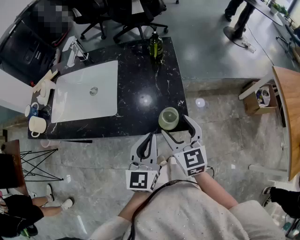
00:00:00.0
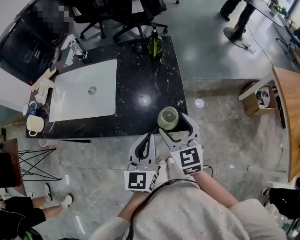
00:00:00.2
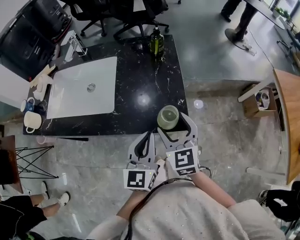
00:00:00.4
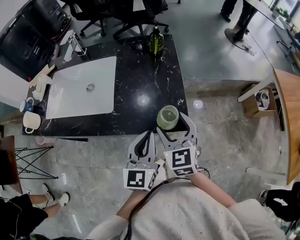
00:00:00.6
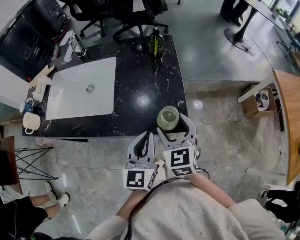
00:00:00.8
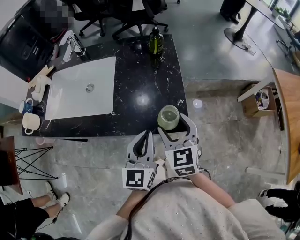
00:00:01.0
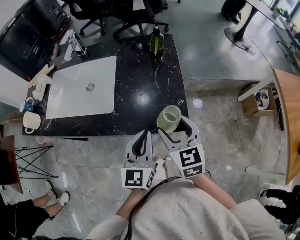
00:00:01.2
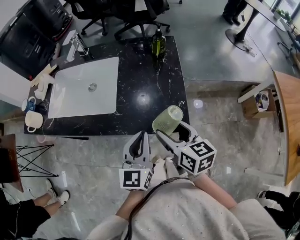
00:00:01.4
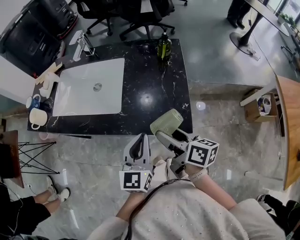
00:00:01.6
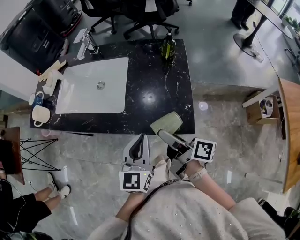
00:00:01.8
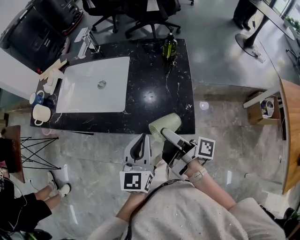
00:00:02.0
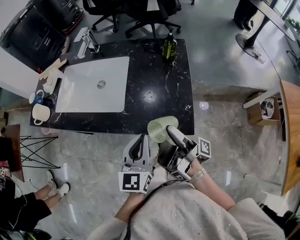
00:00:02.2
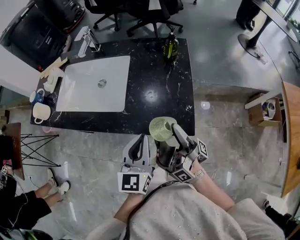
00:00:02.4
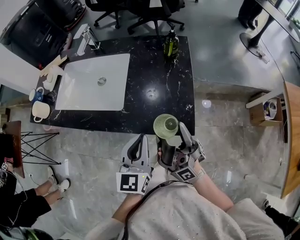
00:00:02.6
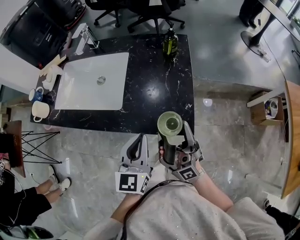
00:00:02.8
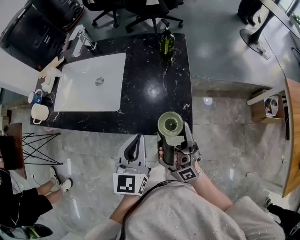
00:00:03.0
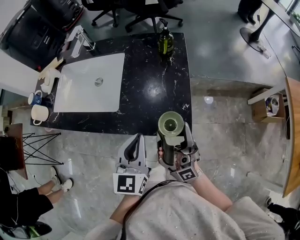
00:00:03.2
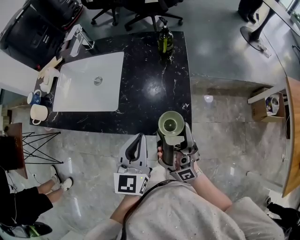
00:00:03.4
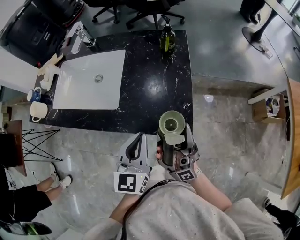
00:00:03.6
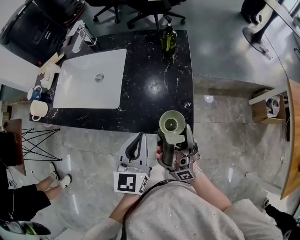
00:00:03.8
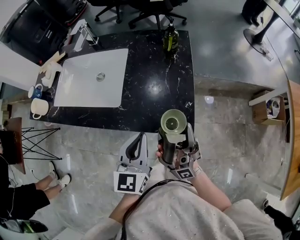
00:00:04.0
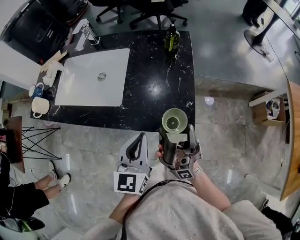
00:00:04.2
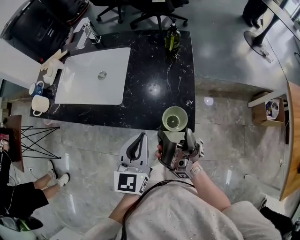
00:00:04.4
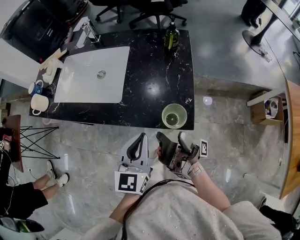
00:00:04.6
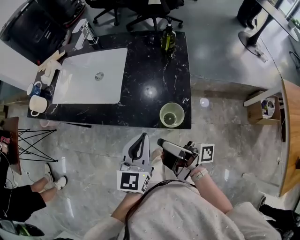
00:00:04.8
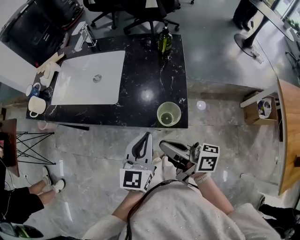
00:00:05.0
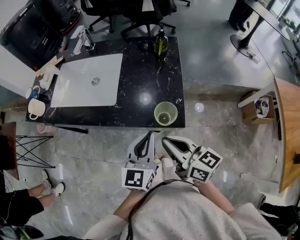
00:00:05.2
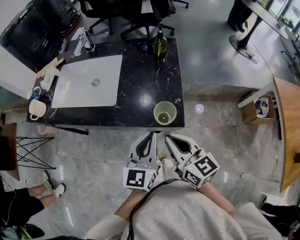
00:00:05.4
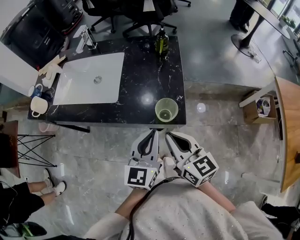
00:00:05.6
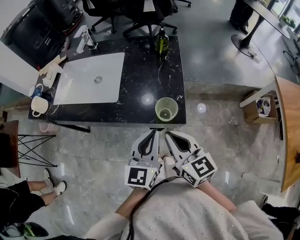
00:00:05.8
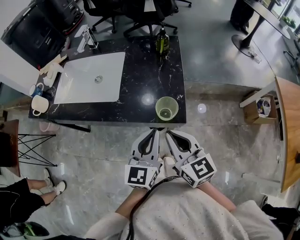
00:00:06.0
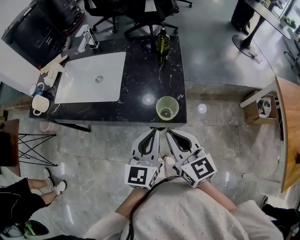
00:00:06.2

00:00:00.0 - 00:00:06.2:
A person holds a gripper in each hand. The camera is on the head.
00:00:04.6 - 00:00:06.2: The left gripper shifts by about 5 cm.

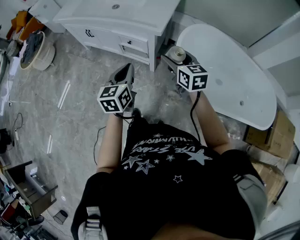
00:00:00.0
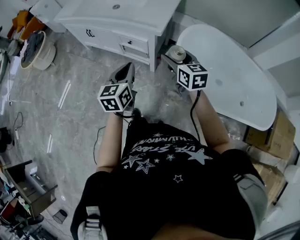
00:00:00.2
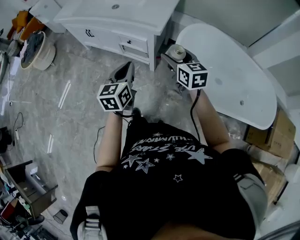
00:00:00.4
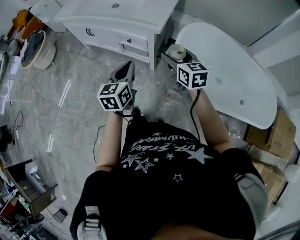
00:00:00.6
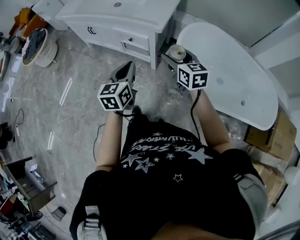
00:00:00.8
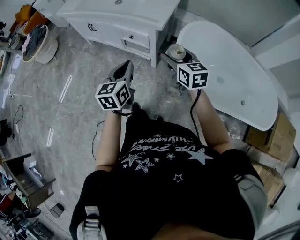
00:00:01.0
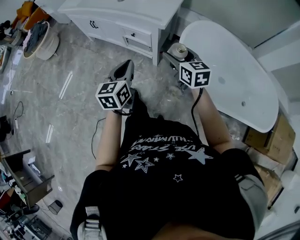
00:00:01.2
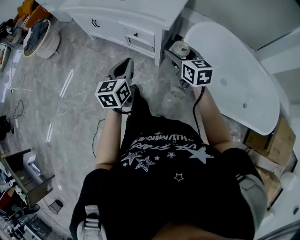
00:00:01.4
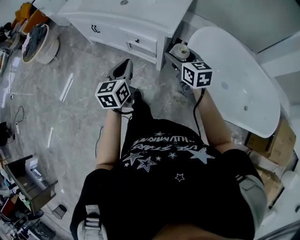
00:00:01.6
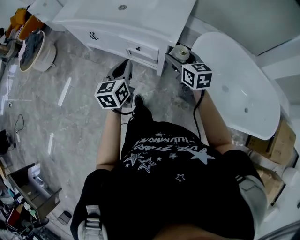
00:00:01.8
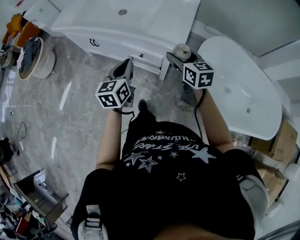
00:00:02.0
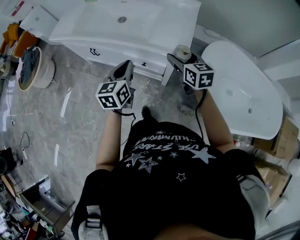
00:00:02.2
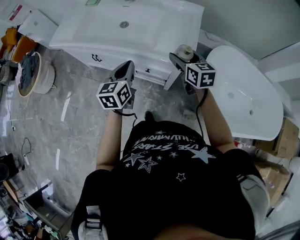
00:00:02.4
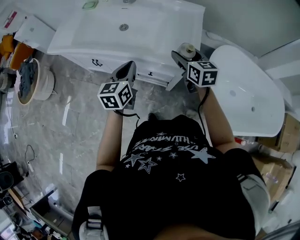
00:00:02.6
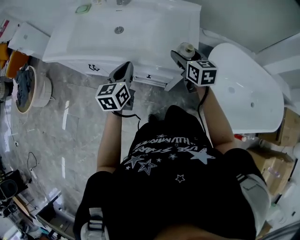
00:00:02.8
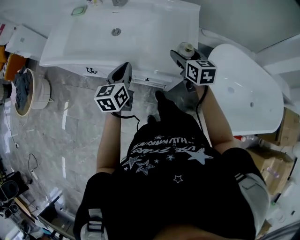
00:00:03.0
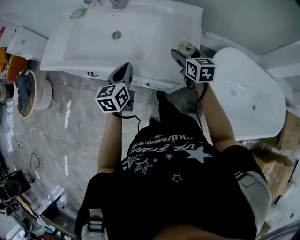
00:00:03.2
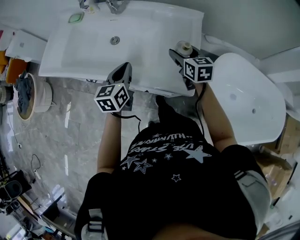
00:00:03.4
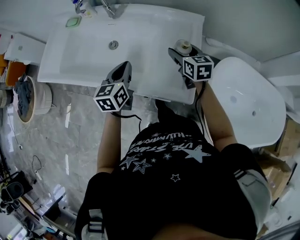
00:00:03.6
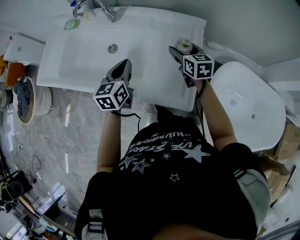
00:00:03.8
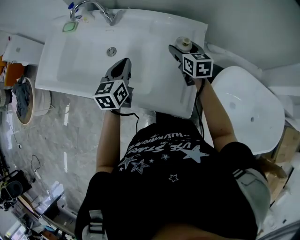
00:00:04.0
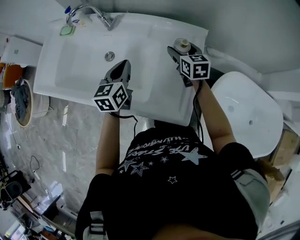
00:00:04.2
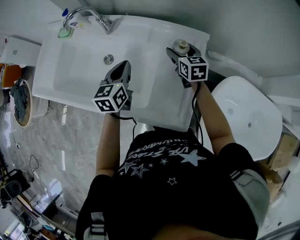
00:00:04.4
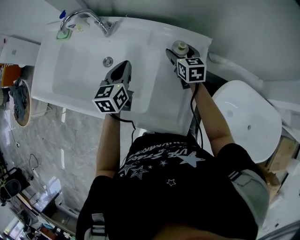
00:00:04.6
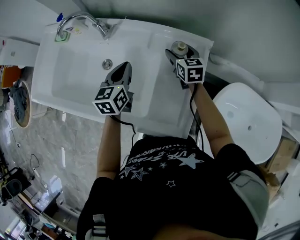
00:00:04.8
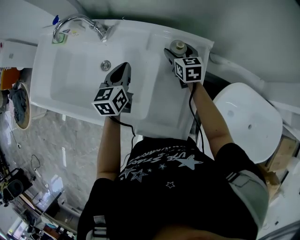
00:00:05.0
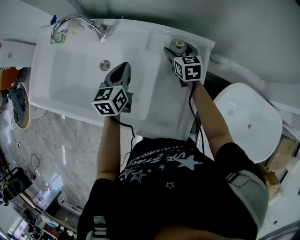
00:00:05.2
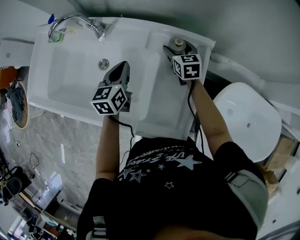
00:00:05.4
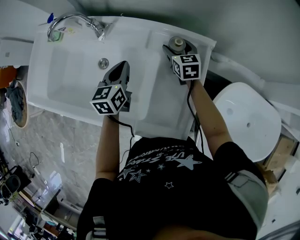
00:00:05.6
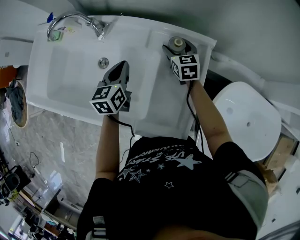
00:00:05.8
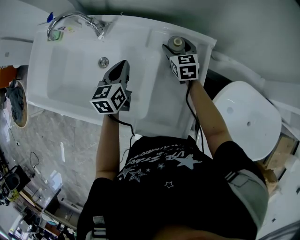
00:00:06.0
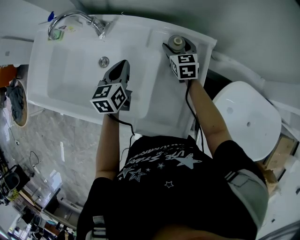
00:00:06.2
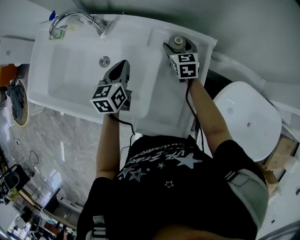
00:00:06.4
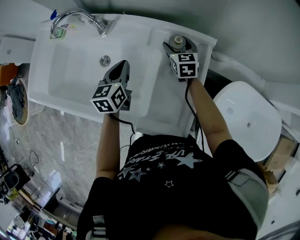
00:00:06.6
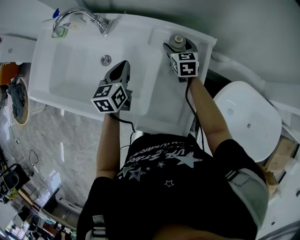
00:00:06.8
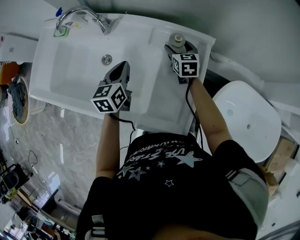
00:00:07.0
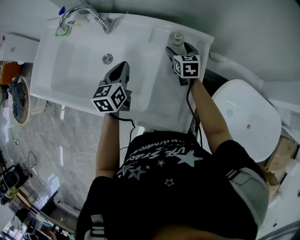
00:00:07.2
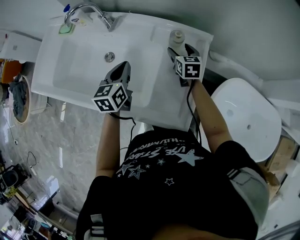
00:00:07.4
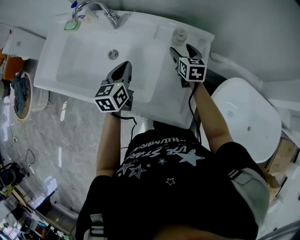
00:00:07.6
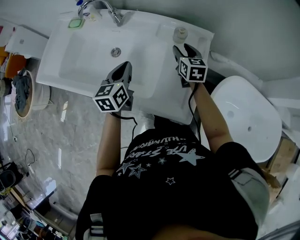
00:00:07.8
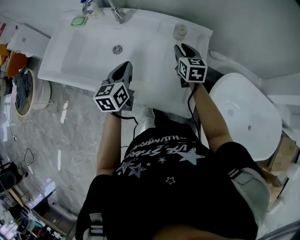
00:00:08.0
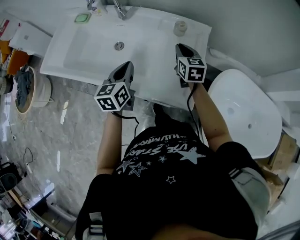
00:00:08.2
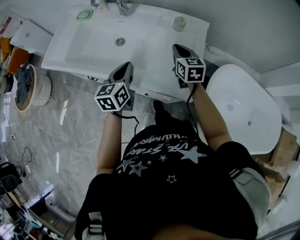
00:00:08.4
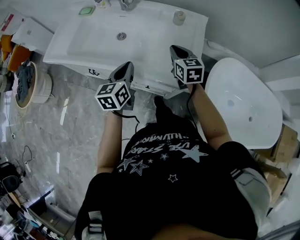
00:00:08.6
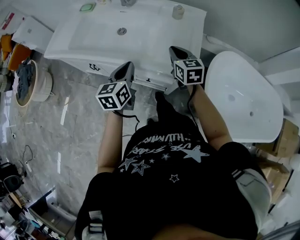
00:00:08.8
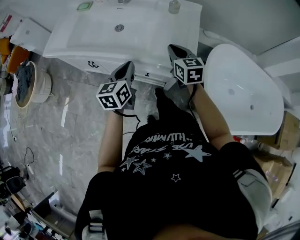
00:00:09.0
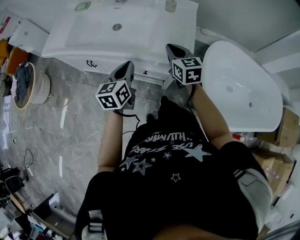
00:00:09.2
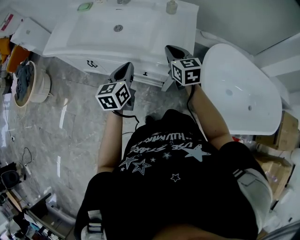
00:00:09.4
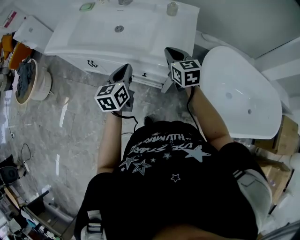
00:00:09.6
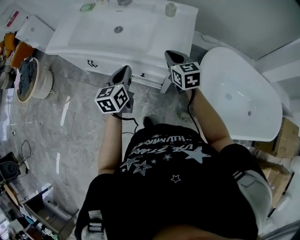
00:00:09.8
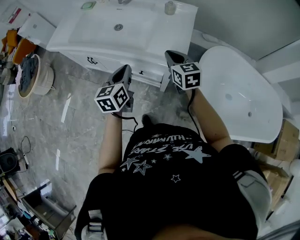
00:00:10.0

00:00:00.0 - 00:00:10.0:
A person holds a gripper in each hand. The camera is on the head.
00:00:00.0 - 00:00:01.4: The grippers make only small movements.
00:00:01.4 - 00:00:02.8: Both grippers move forward, roughly 35 cm.
00:00:02.8 - 00:00:04.2: Both grippers travel together forward, roughly 30 cm.
00:00:04.2 - 00:00:05.8: Both grippers move forward and downward, approximately 10 cm.
00:00:05.8 - 00:00:07.2: The left gripper ends up approximately 5 cm from where it was.
00:00:07.2 - 00:00:08.6: The left gripper travels backward by some 25 cm. The right gripper shifts approximately 30 cm backward and upward, and closes.
00:00:08.6 - 00:00:10.0: The two grippers go approximately 15 cm backward.

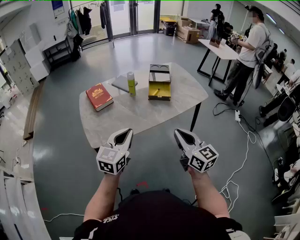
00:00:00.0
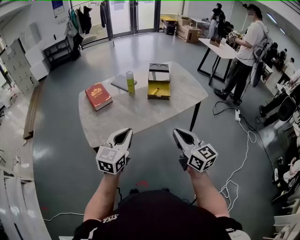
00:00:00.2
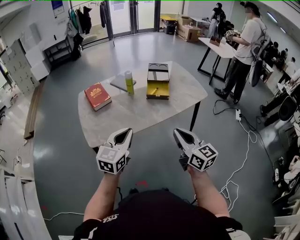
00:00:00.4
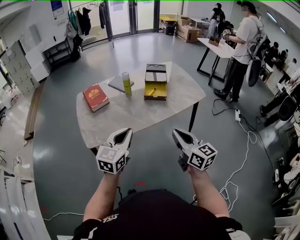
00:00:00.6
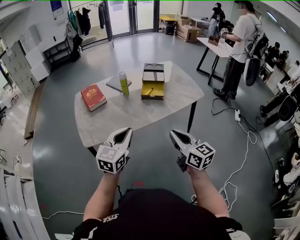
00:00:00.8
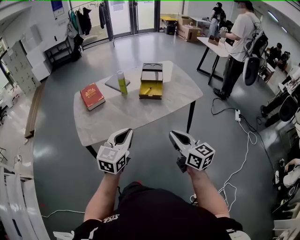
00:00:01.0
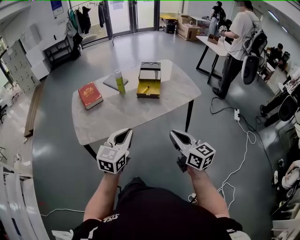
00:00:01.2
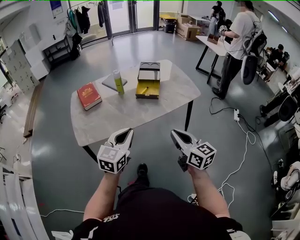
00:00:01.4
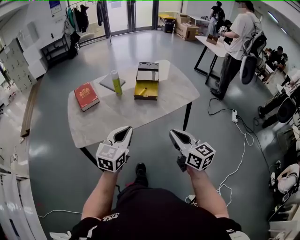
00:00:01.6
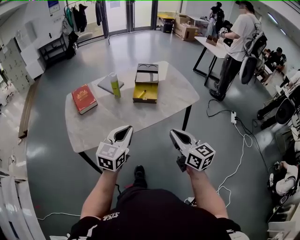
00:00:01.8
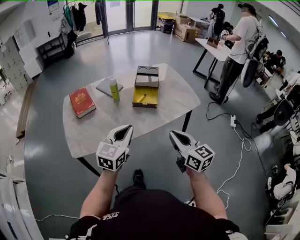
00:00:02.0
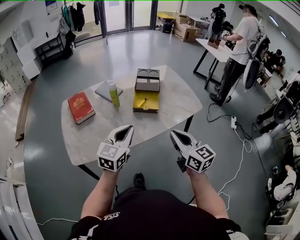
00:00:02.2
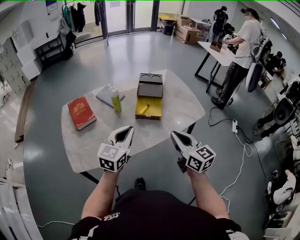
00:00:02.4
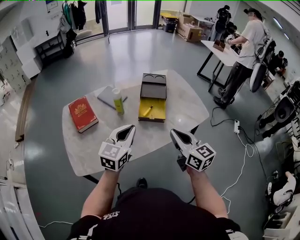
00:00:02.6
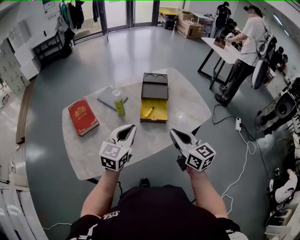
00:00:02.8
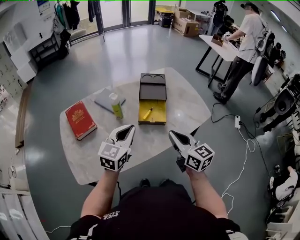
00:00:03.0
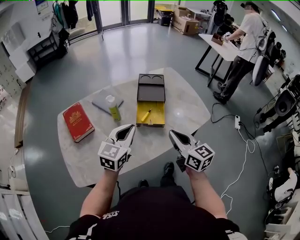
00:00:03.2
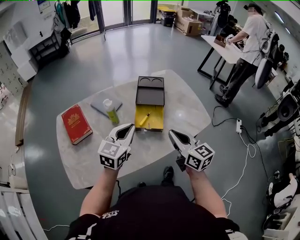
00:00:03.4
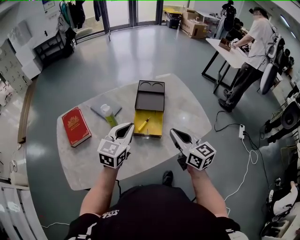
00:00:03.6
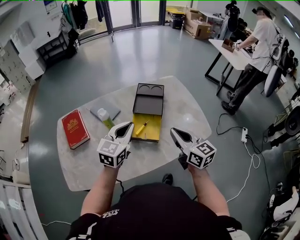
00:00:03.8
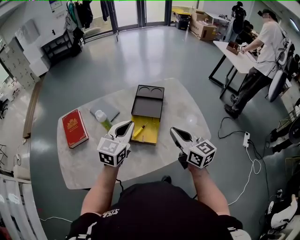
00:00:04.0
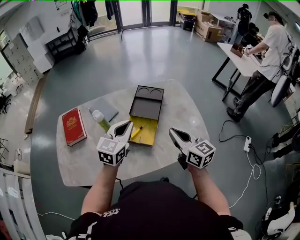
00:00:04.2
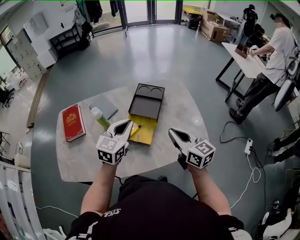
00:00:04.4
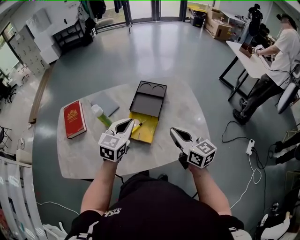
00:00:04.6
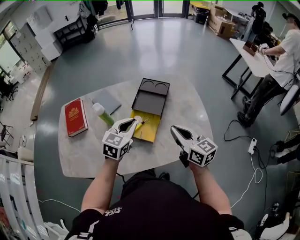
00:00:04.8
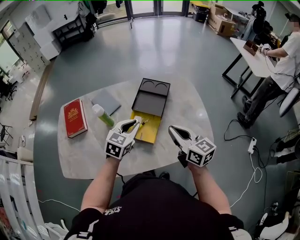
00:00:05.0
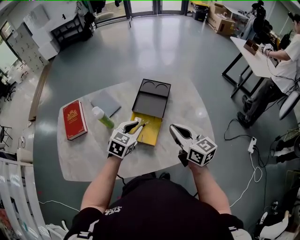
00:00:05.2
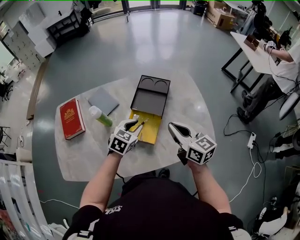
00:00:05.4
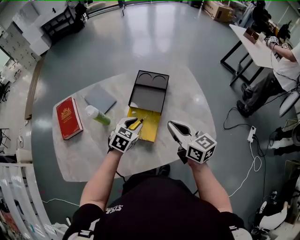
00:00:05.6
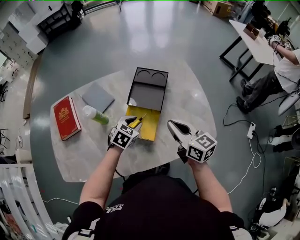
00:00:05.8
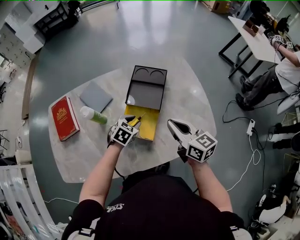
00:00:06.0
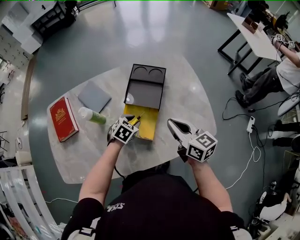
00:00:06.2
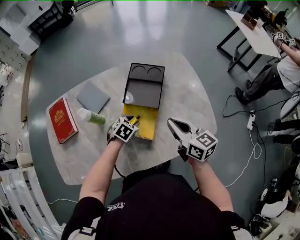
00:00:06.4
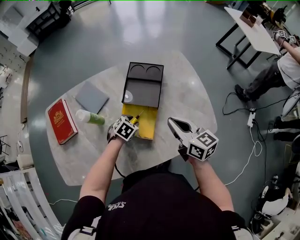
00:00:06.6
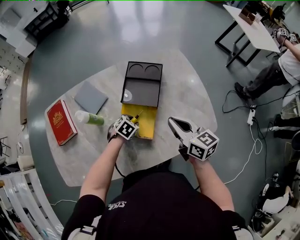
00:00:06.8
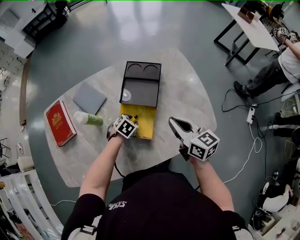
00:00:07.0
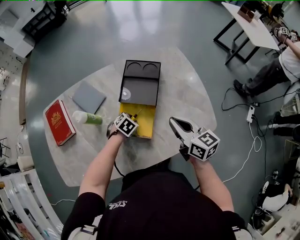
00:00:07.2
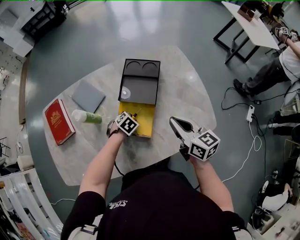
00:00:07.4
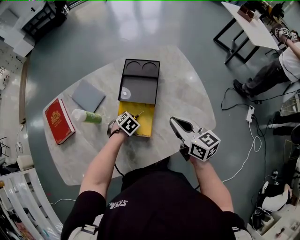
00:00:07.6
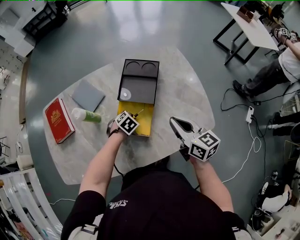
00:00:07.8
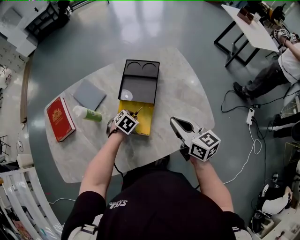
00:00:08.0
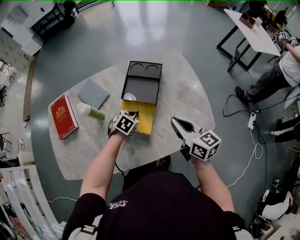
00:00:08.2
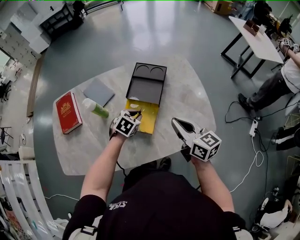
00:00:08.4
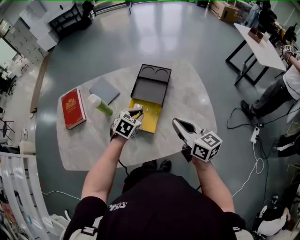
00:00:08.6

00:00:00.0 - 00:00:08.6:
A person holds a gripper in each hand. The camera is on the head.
00:00:00.0 - 00:00:01.4: Both grippers move to the right, approximately 10 cm.
00:00:01.4 - 00:00:02.8: The grippers both shift forward by approximately 25 cm.
00:00:02.8 - 00:00:04.4: The two grippers go approximately 25 cm forward and to the right.
00:00:04.4 - 00:00:05.8: The left gripper moves downward, roughly 20 cm, angles its fingers downward, by about 30 degrees, and opens up, while the right gripper shifts about 10 cm forward and downward.
00:00:05.8 - 00:00:07.2: The left gripper shifts approximately 15 cm downward, and changes its angle by some 20 degrees.
00:00:07.2 - 00:00:08.6: The left gripper heads upward, covering approximately 15 cm, and swivels roughly 30 degrees; the right gripper is displaced upward by approximately 5 cm.
